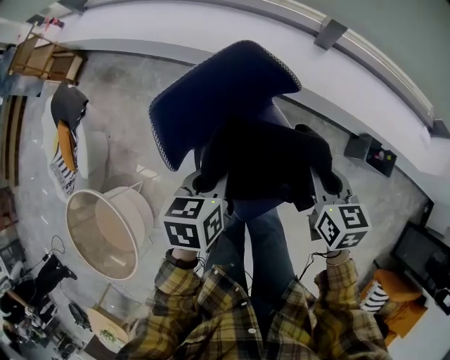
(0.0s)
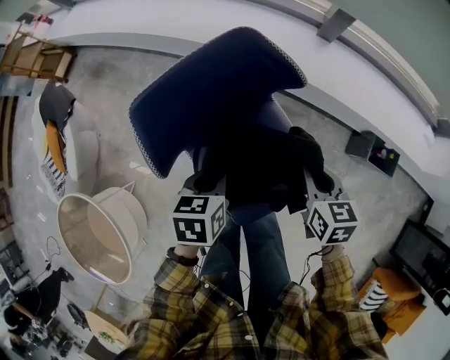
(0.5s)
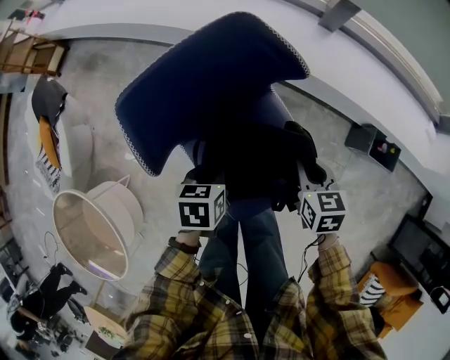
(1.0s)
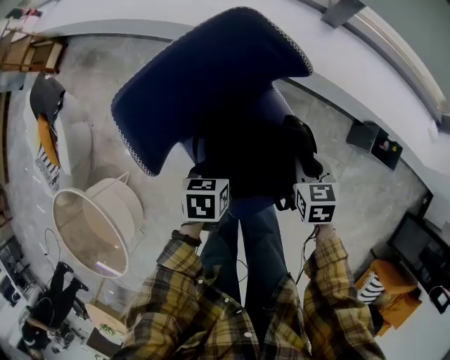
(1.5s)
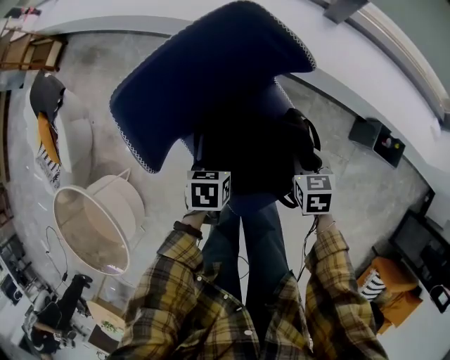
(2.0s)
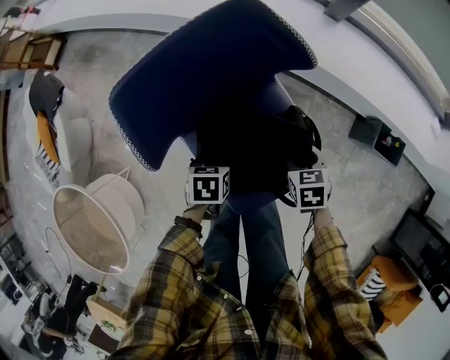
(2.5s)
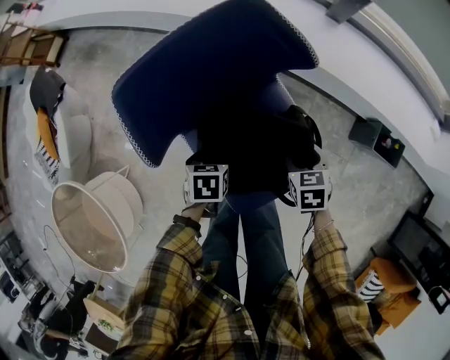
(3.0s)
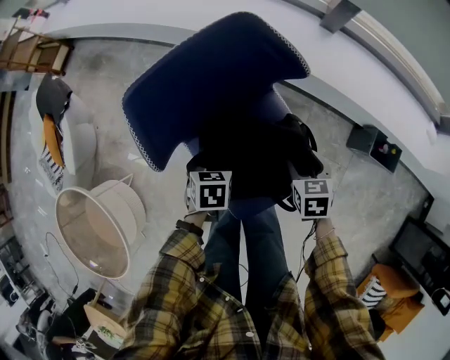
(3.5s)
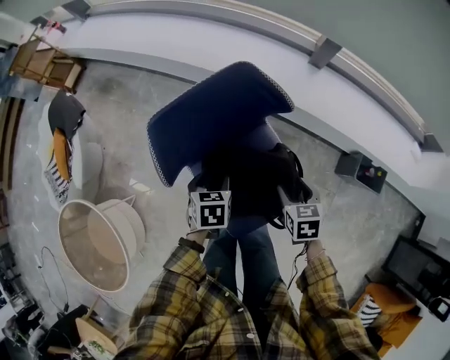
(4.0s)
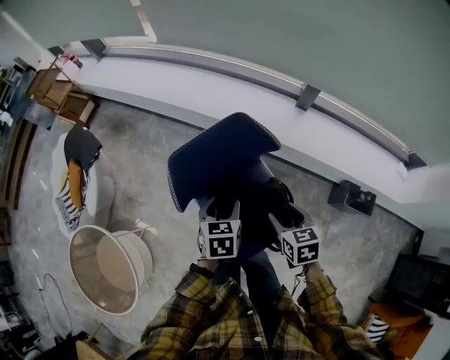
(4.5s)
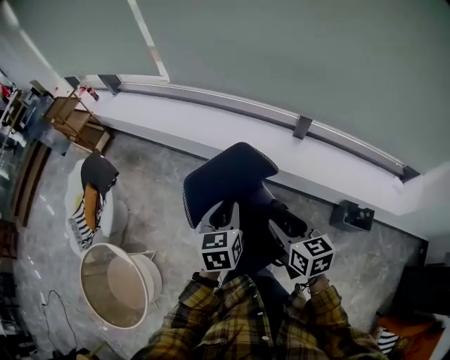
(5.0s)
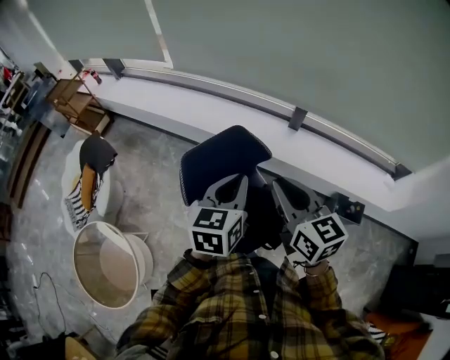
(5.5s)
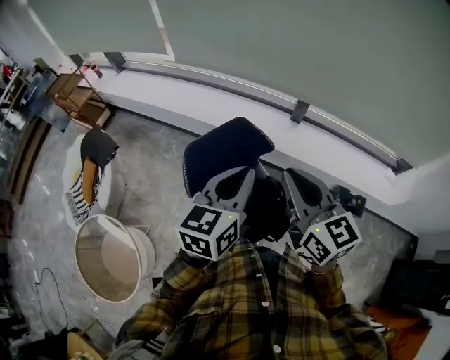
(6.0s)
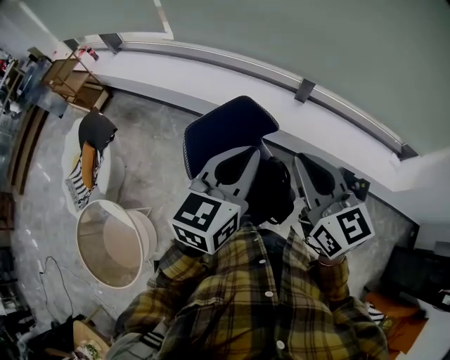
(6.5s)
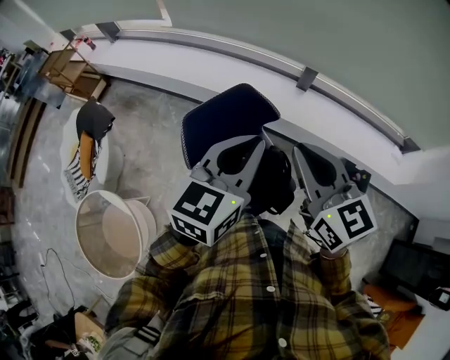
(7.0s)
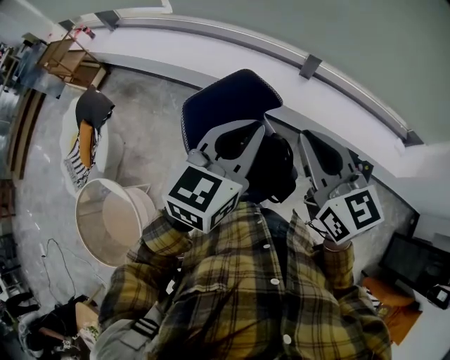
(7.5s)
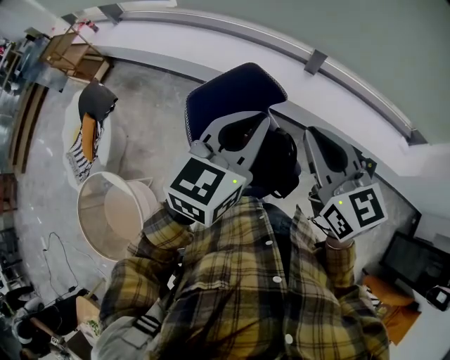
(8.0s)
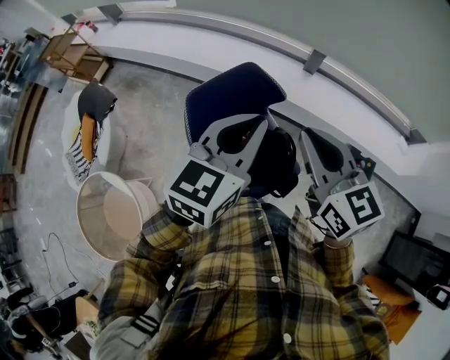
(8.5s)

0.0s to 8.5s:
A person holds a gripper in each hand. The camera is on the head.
0.0s to 2.0s: Both grippers travel together downward, roughly 20 cm. The right gripper rotates approximately 20 degrees.
2.0s to 4.0s: Both grippers travel together upward, approximately 10 cm. The right gripper opens up. The left gripper opens up.
4.0s to 6.5s: The two grippers go approximately 50 cm upward. The left gripper tips its fingers upward by roughly 50 degrees, and closes up; the right gripper angles its fingers upward, by roughly 50 degrees, and closes up.
6.5s to 8.5s: There are only small adjustments of the grippers.

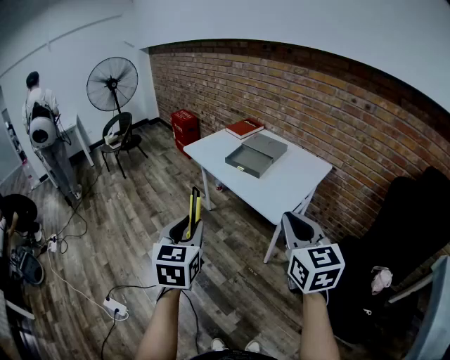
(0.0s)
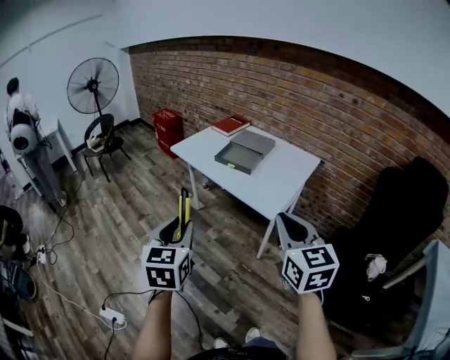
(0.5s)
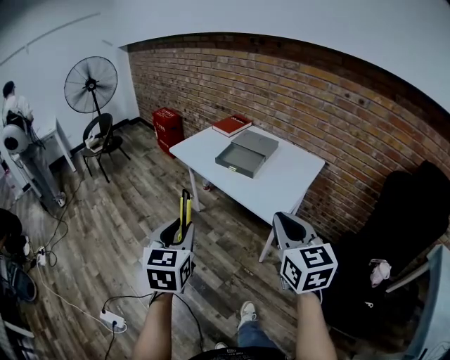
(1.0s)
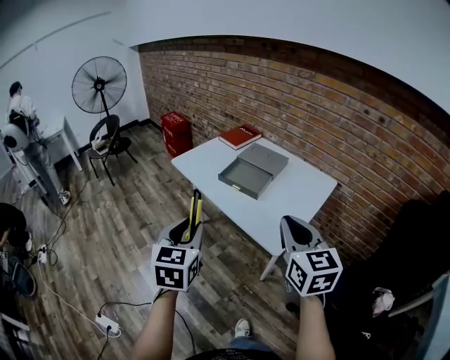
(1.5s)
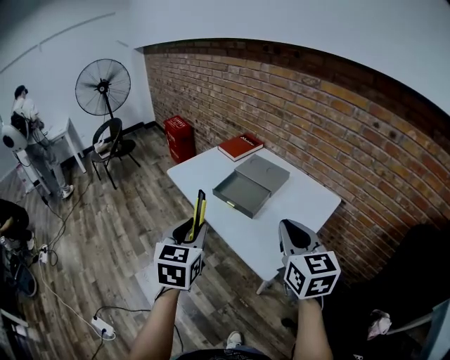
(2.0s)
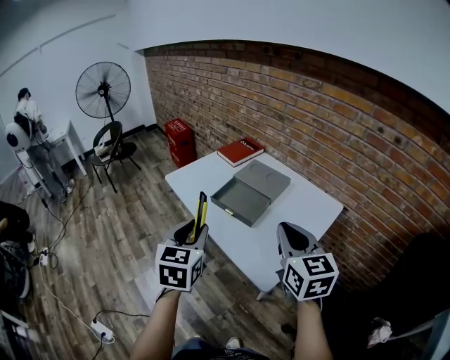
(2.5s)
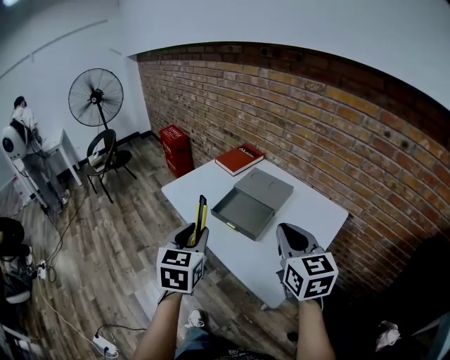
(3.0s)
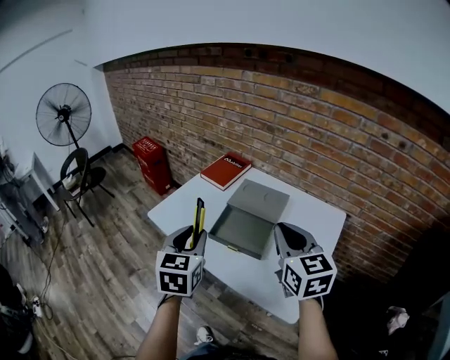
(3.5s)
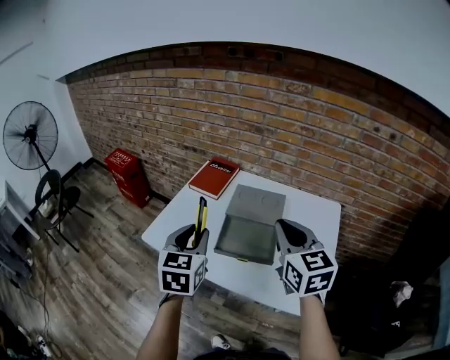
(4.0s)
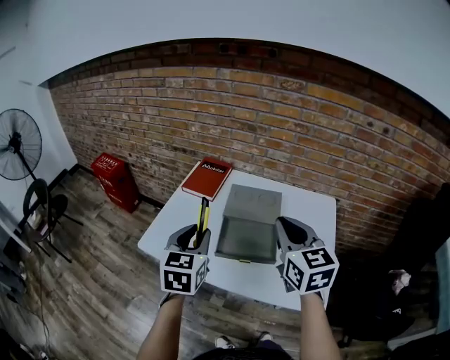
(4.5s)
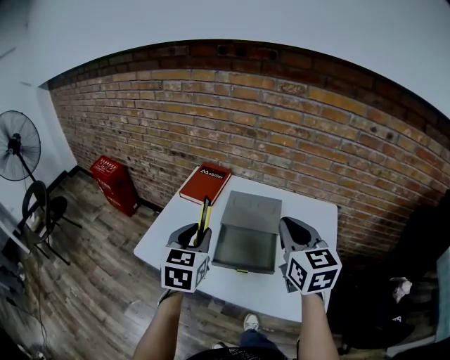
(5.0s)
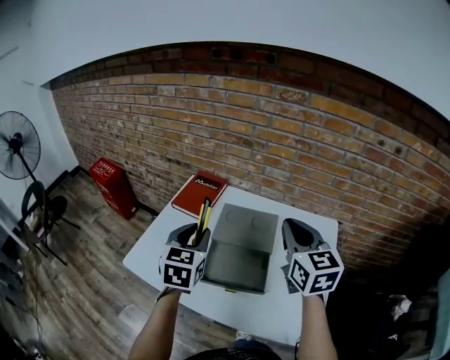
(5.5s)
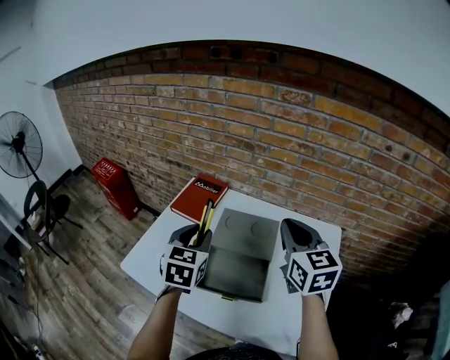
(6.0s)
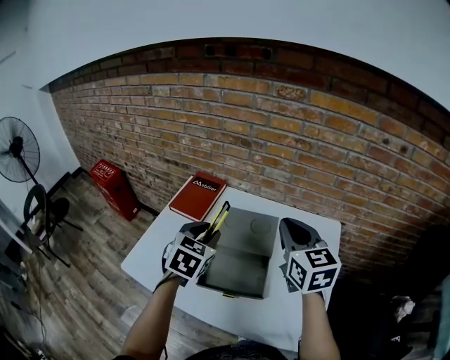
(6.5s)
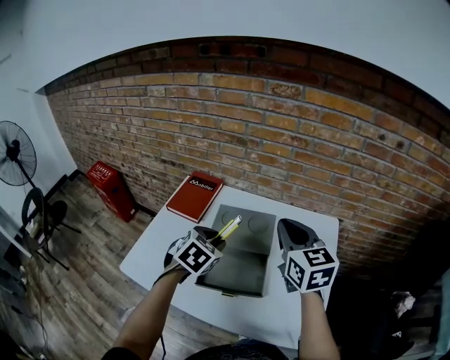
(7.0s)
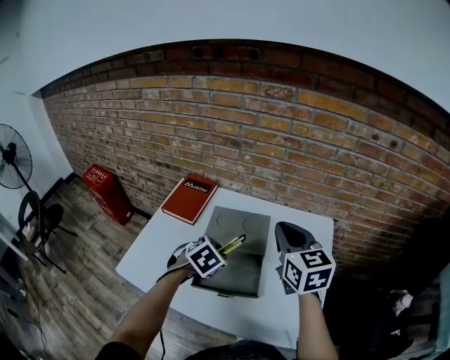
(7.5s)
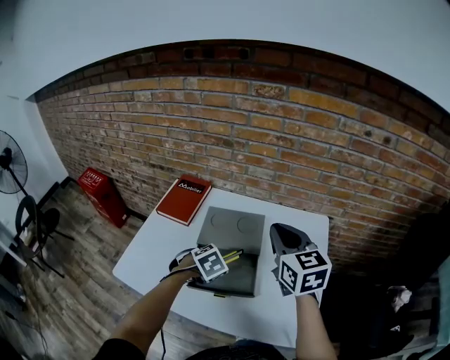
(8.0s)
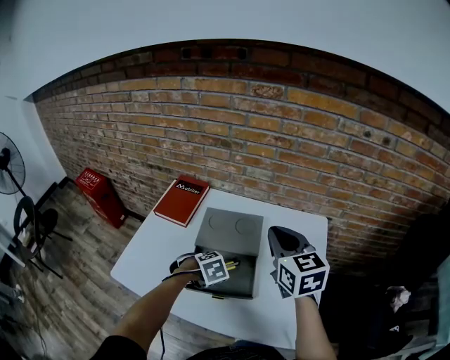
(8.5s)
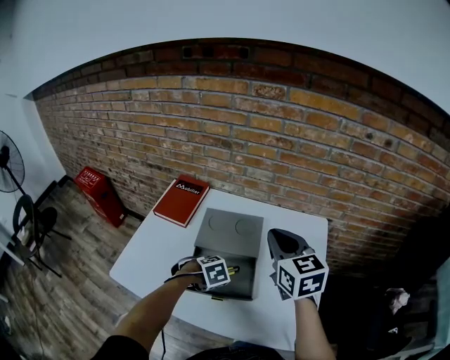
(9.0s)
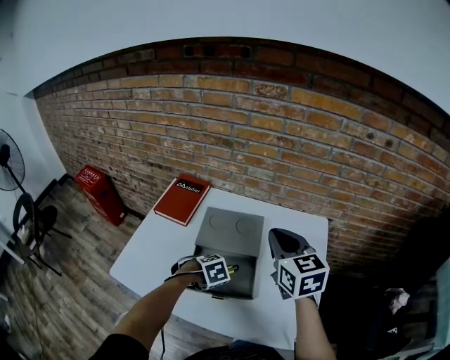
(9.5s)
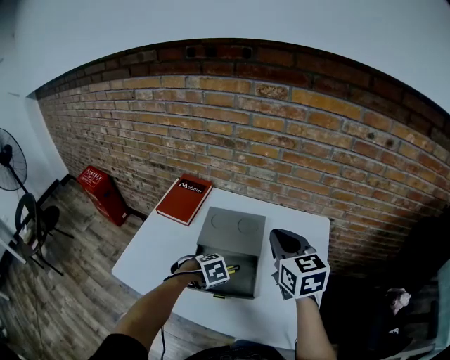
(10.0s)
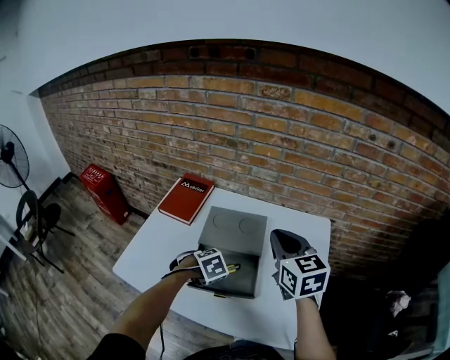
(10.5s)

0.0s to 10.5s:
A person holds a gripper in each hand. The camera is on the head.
0.0s to 2.0s: The grippers both shift forward by roughly 25 cm.
2.0s to 4.0s: The right gripper travels forward and to the left by roughly 25 cm, and swivels about 20 degrees. The left gripper heads forward, covering roughly 30 cm, and swivels roughly 20 degrees.
4.0s to 6.5s: The grippers both shift forward and to the right by approximately 15 cm. The left gripper rotates some 20 degrees.
6.5s to 8.5s: The left gripper moves downward, approximately 20 cm, and points its fingers about 50 degrees further downward.
8.5s to 10.5s: There are only small adjustments of the grippers.

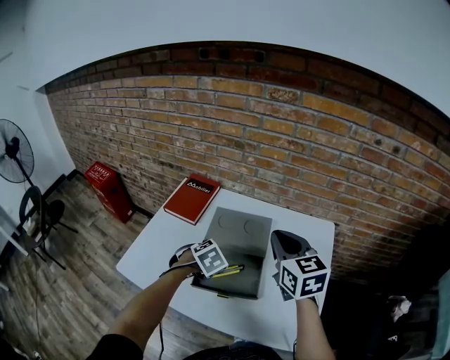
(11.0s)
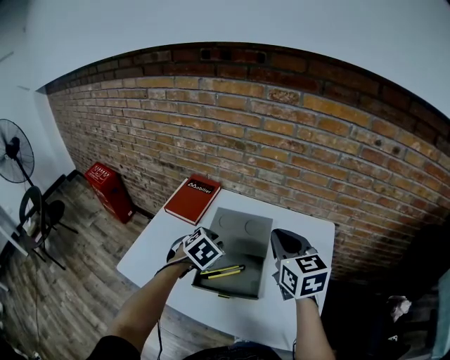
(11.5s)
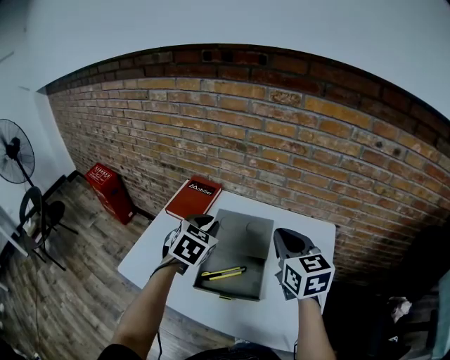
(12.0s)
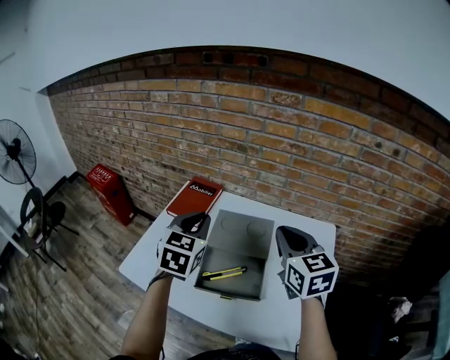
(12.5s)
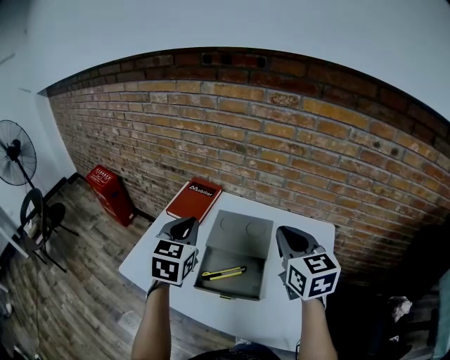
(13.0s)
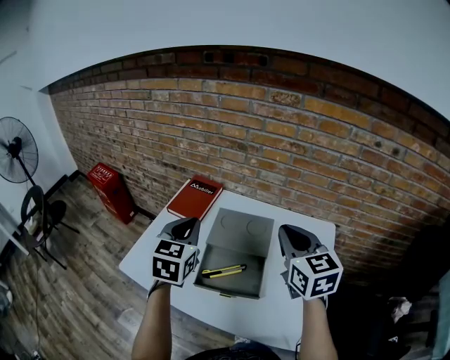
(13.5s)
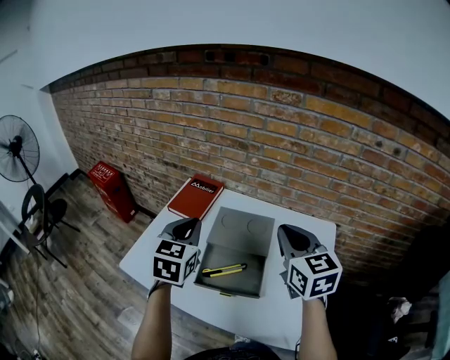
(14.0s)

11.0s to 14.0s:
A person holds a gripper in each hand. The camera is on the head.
11.0s to 12.5s: The left gripper shifts some 20 cm upward, and points its fingers about 50 degrees further upward.
12.5s to 14.0s: There are only small adjustments of the grippers.

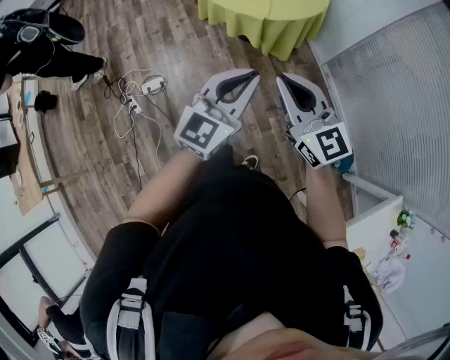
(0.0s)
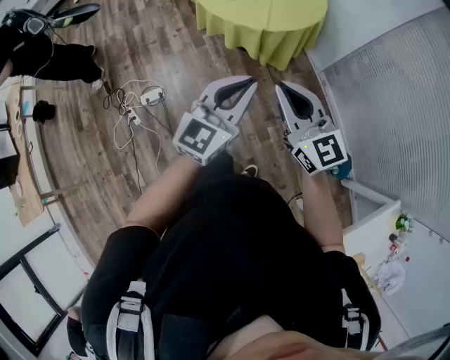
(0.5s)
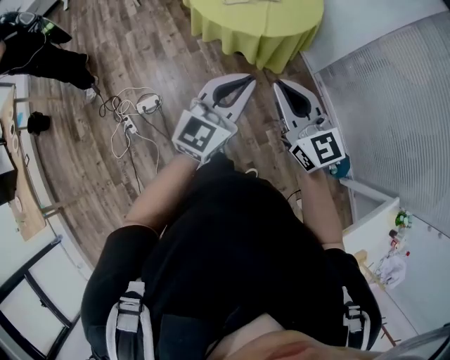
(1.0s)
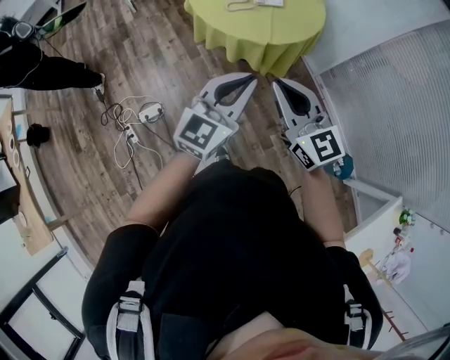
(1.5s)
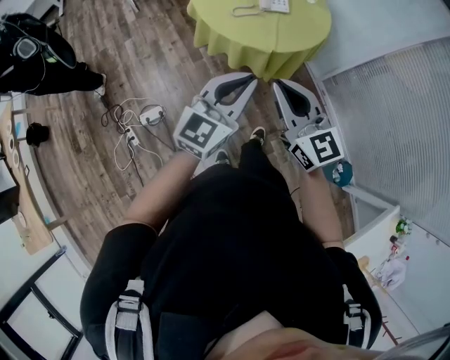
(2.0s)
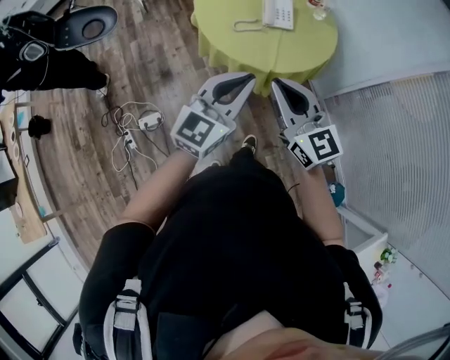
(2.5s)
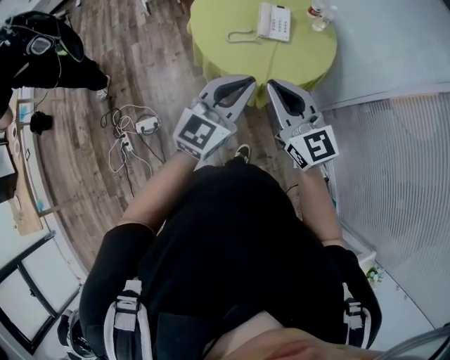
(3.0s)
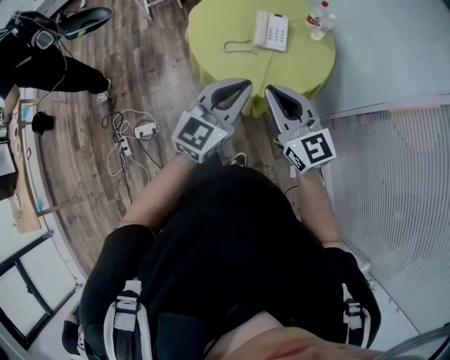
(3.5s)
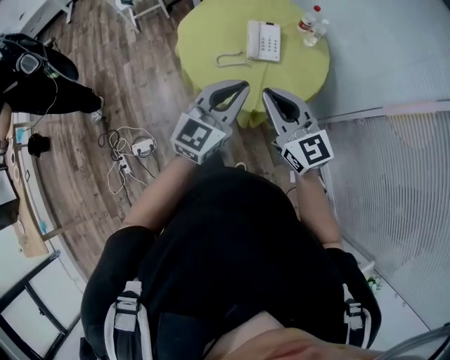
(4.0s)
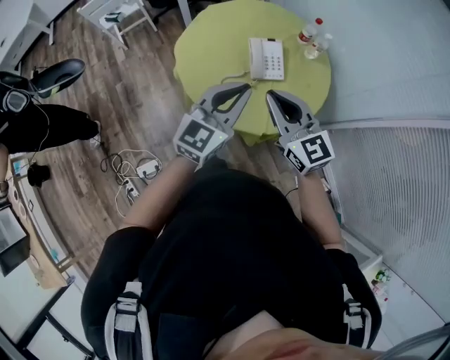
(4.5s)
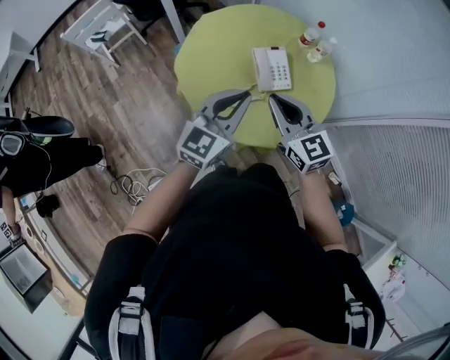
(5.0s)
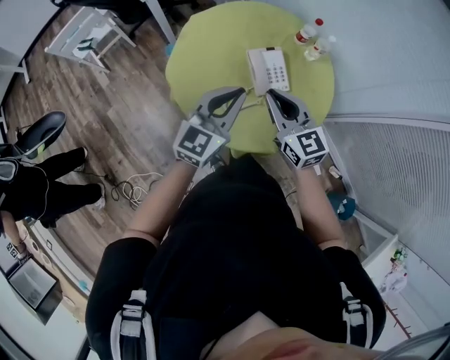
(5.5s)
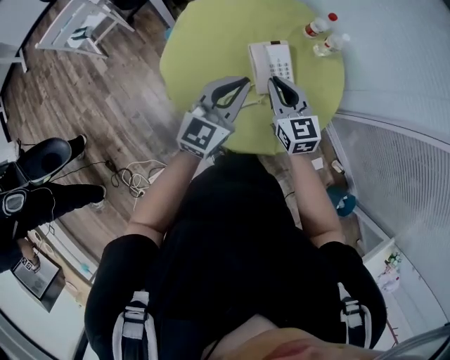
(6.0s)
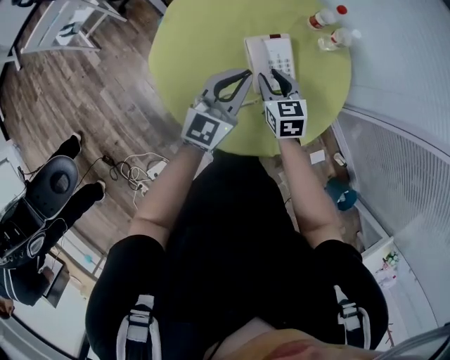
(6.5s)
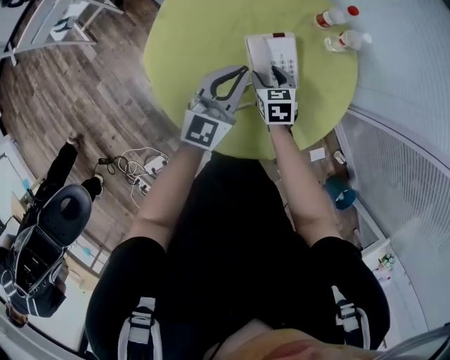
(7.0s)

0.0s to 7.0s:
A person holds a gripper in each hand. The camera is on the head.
0.0s to 2.0s: The two grippers go roughly 20 cm forward and to the left.
2.0s to 3.5s: Both grippers move forward and to the right, approximately 25 cm.
3.5s to 5.0s: Both grippers travel together forward and to the left, some 30 cm. The right gripper changes its angle by roughly 20 degrees.
5.0s to 7.0s: The left gripper goes some 30 cm forward and downward; the right gripper moves downward and forward, roughly 40 cm, tips its fingers downward by approximately 40 degrees, and opens its fingers.
